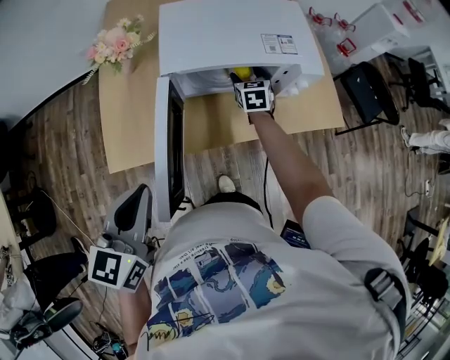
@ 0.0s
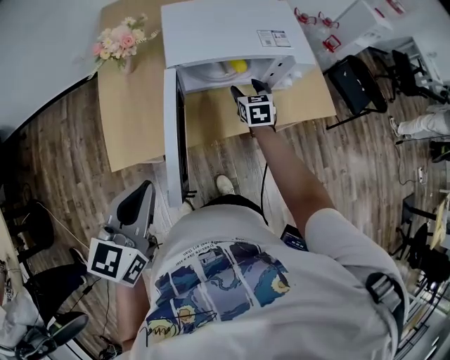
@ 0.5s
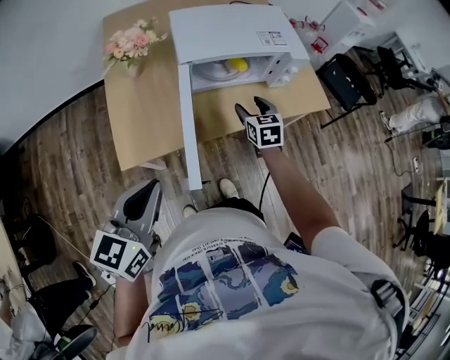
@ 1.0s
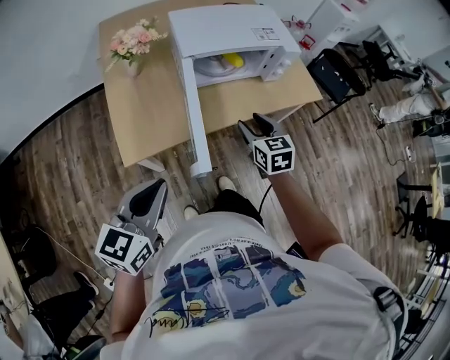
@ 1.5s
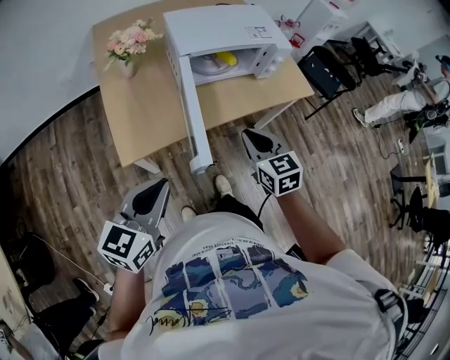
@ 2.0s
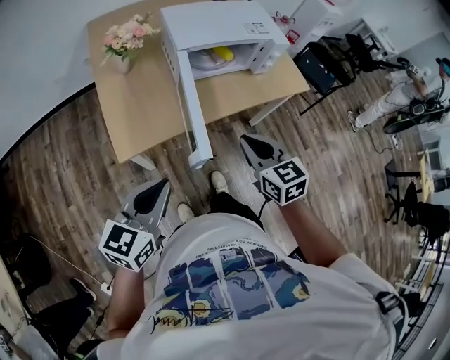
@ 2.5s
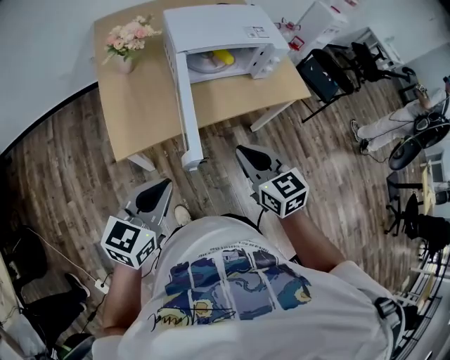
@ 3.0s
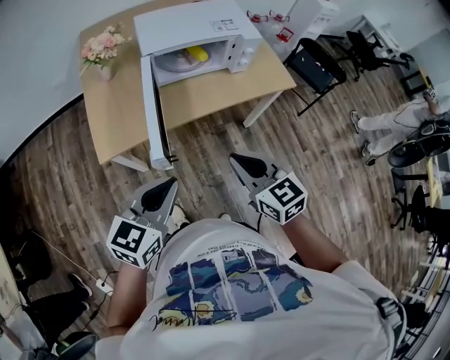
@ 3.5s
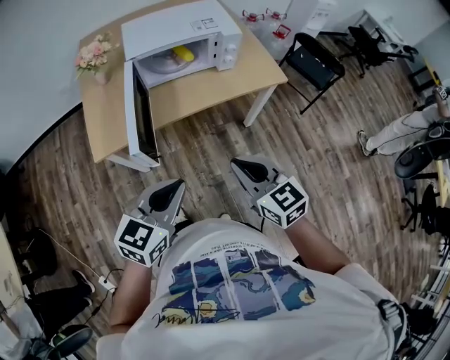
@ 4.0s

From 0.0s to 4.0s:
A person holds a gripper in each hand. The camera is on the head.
From 0.0s to 2.0s: The right gripper is displaced backward by approximately 40 cm, and closes. The left gripper heads backward and to the left, covering roughly 15 cm, and swivels roughly 20 degrees.
From 2.0s to 4.0s: The right gripper heads to the right and backward, covering roughly 20 cm; the left gripper moves to the right, some 25 cm.

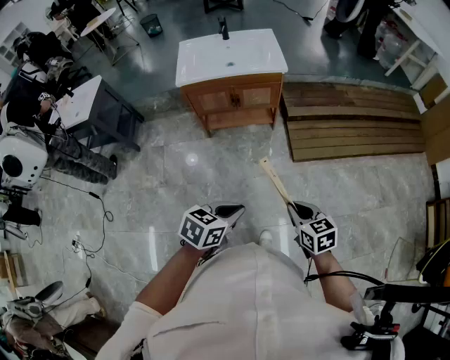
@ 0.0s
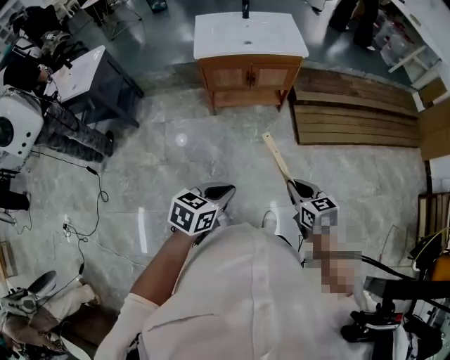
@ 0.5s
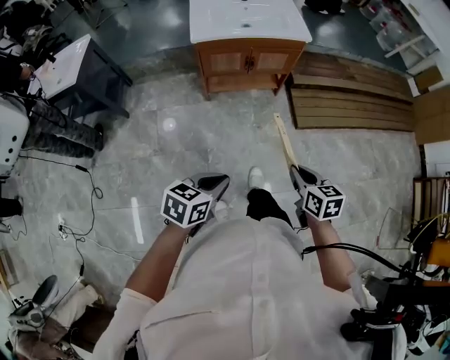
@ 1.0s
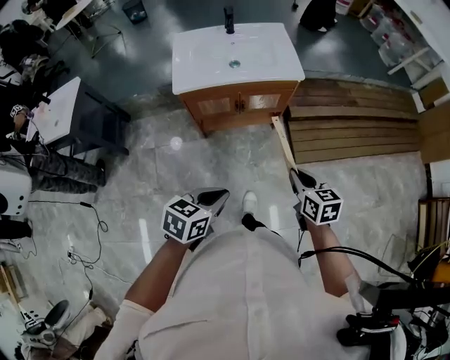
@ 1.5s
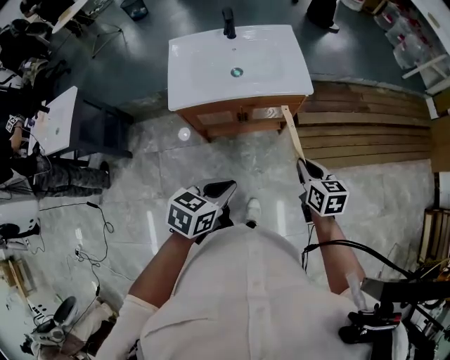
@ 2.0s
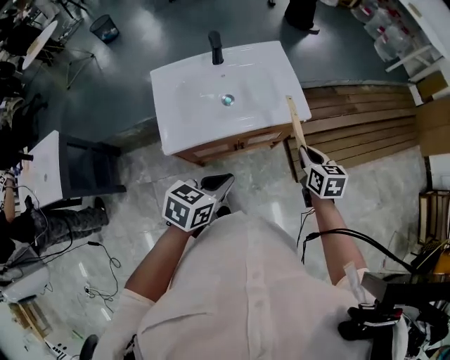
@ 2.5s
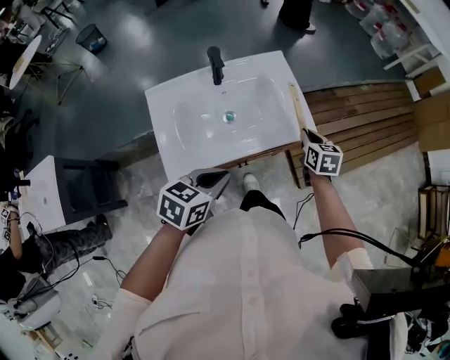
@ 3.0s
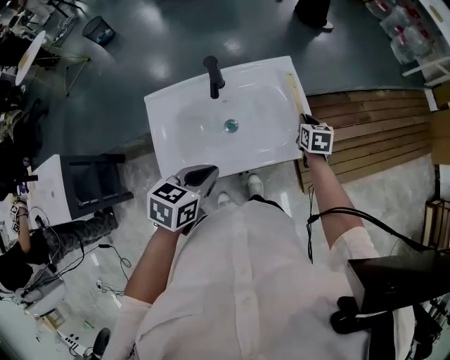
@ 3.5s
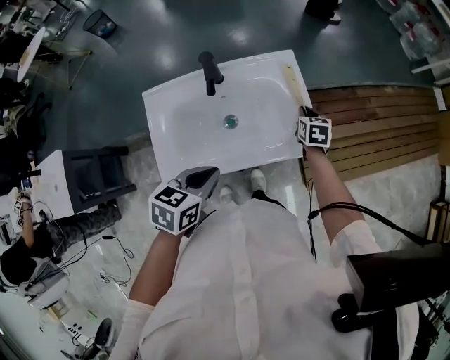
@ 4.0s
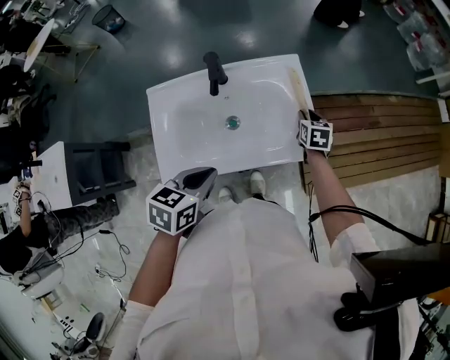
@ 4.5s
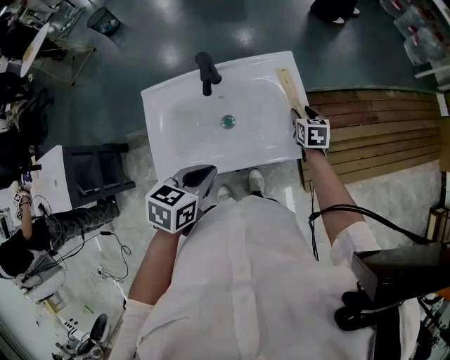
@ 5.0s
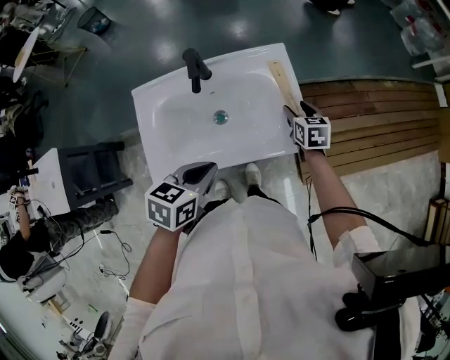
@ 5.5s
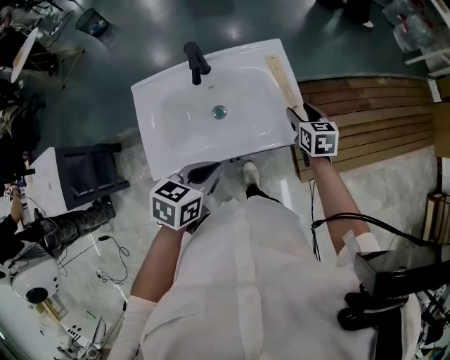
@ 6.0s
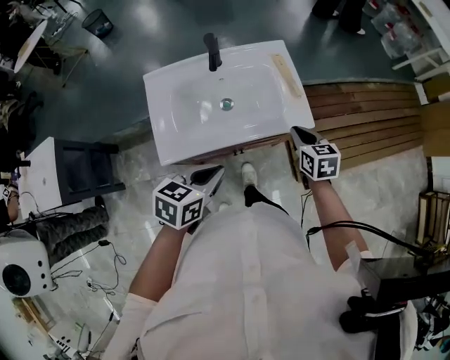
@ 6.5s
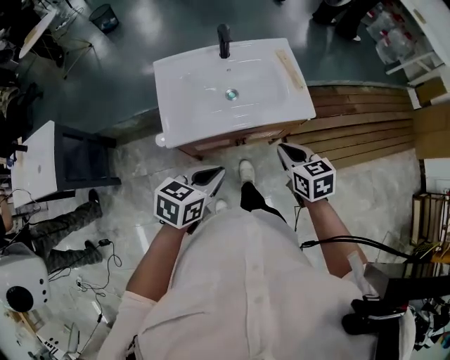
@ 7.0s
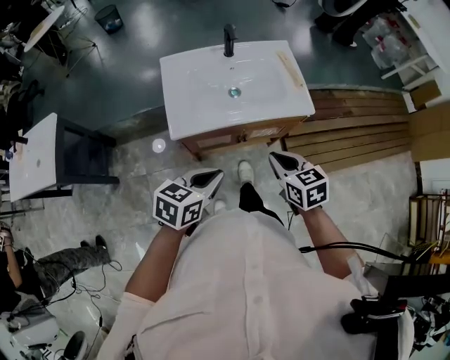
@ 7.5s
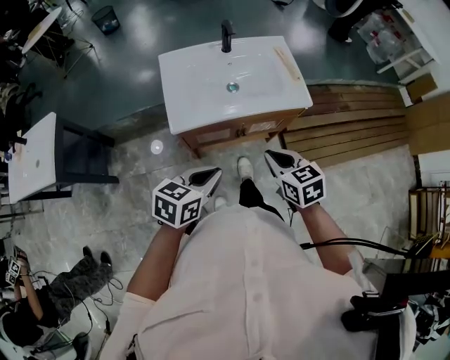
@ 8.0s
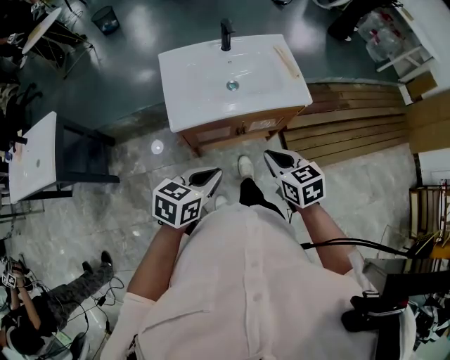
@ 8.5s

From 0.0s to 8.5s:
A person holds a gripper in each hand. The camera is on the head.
From 0.0s to 2.0s: The left gripper heads forward and to the left, covering some 35 cm, while the right gripper heads forward, covering about 40 cm.
From 2.0s to 4.0s: The left gripper travels forward and to the left by roughly 35 cm, while the right gripper heads forward, covering some 40 cm.
From 4.0s to 6.5s: The right gripper travels backward and upward by about 25 cm, and opens, then closes once more. The left gripper is displaced backward by about 10 cm.
From 6.5s to 8.5s: Both grippers travel together backward, some 20 cm.

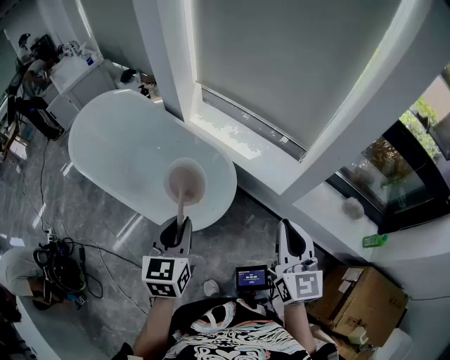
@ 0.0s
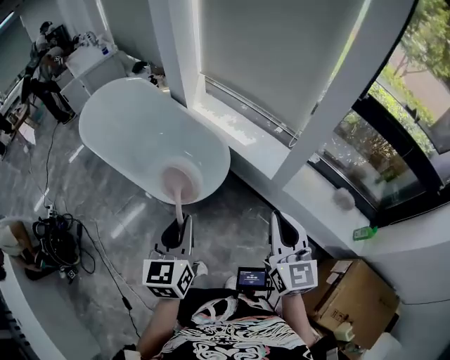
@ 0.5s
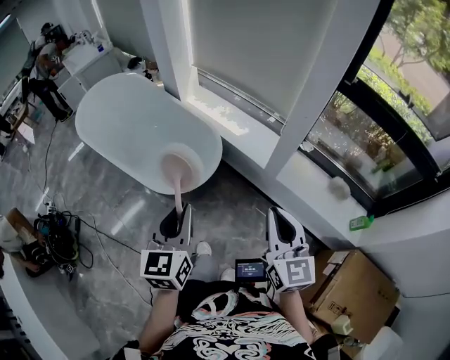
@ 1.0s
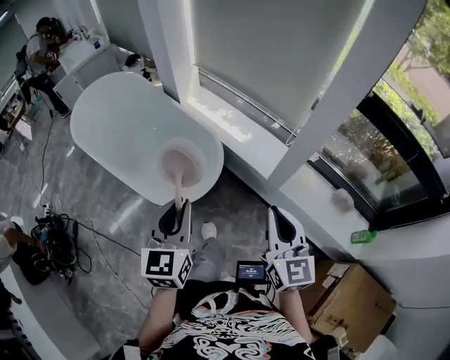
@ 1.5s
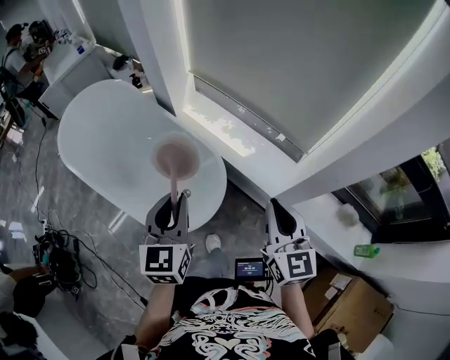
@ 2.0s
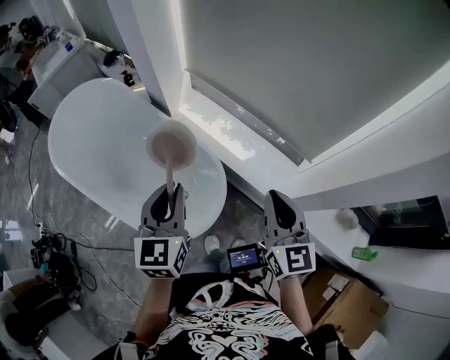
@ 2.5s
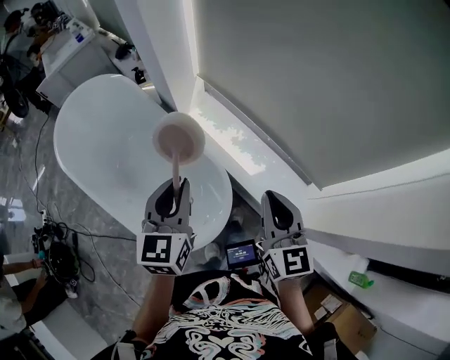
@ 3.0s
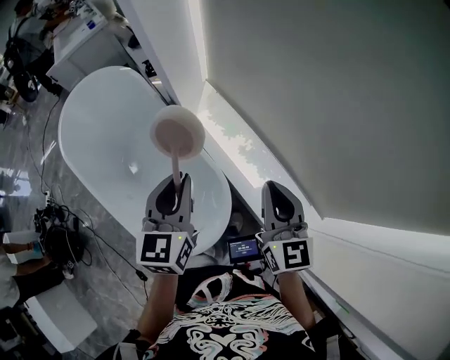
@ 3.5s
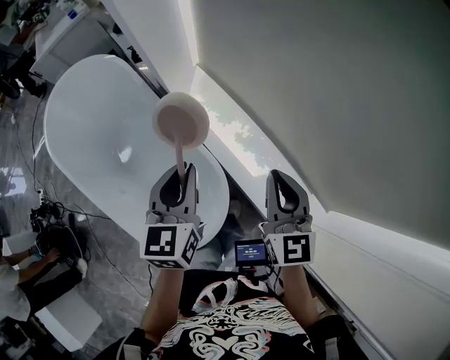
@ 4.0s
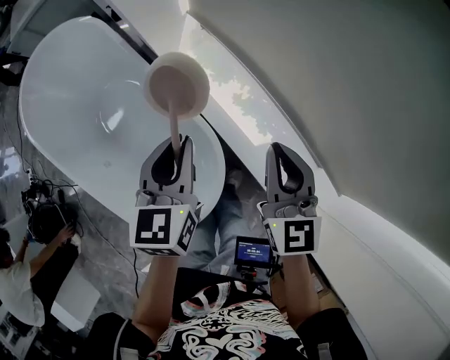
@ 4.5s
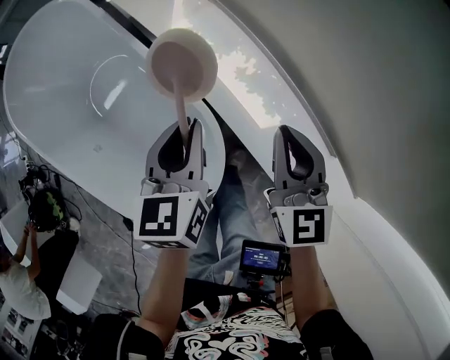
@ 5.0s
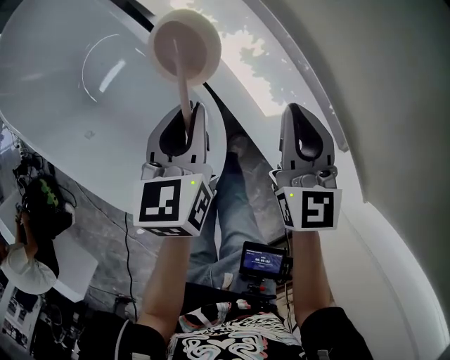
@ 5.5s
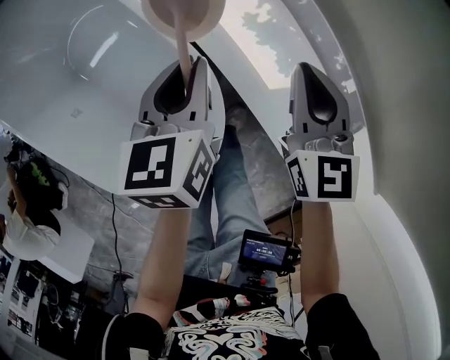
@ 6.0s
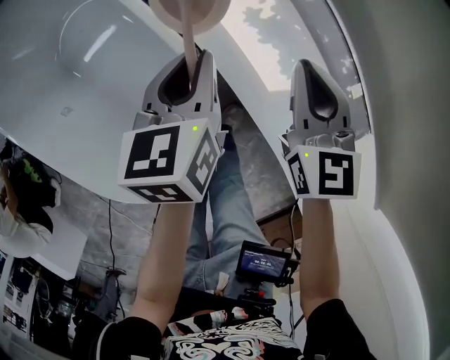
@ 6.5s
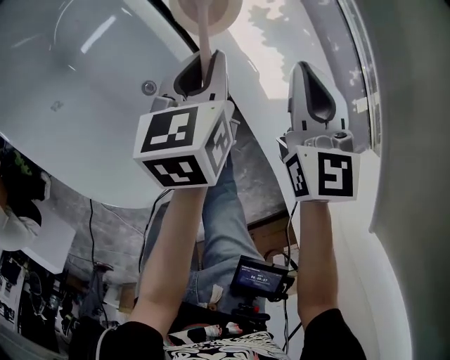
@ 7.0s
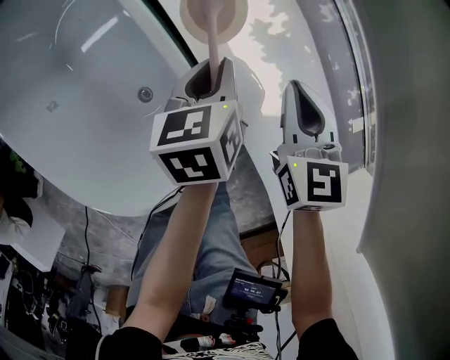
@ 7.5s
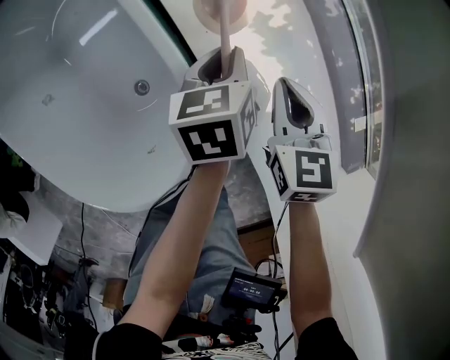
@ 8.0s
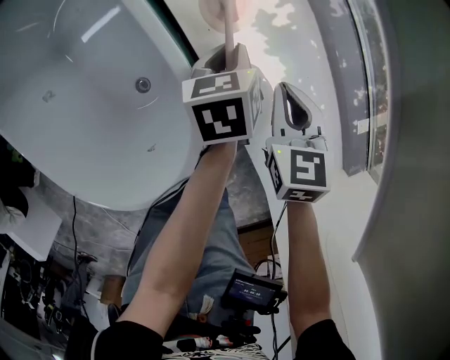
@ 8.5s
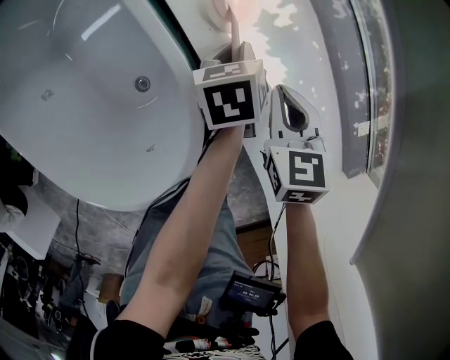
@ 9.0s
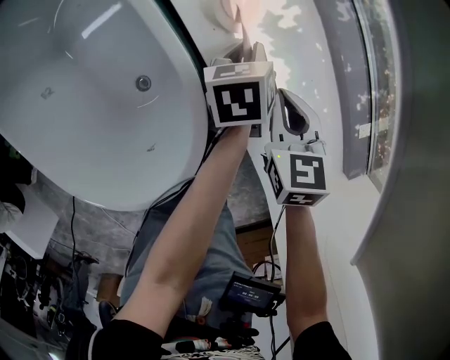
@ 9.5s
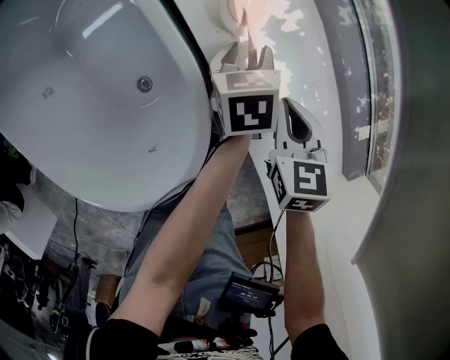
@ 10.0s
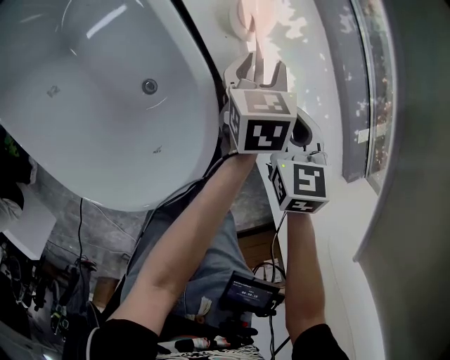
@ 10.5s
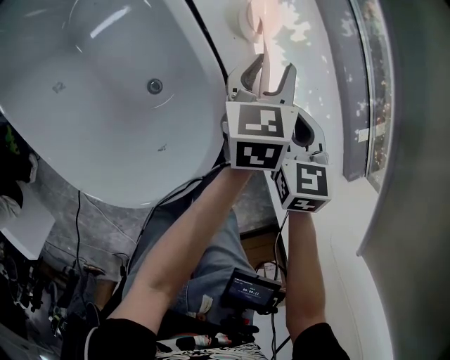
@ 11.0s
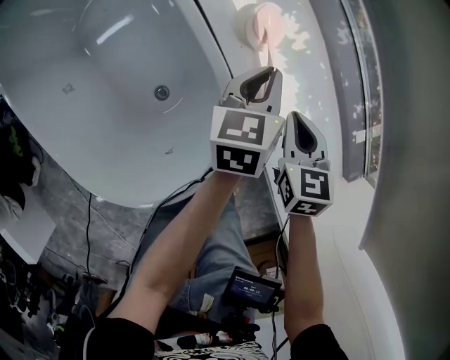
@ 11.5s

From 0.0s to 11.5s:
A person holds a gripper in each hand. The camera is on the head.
From 0.0s to 2.0s: The right gripper moves forward, some 15 cm, while the left gripper shifts approximately 15 cm forward and to the right.
From 2.0s to 4.0s: Both grippers move forward, some 40 cm.
From 4.0s to 6.0s: Both grippers travel together downward, some 35 cm.
From 6.0s to 7.5s: Both grippers move downward, roughly 15 cm.
From 7.5s to 9.5s: The two grippers go roughly 10 cm downward.
From 9.5s to 11.5s: The left gripper travels upward by some 15 cm, swivels approximately 20 degrees, and opens and closes again. Meanwhile the right gripper travels upward by some 5 cm.

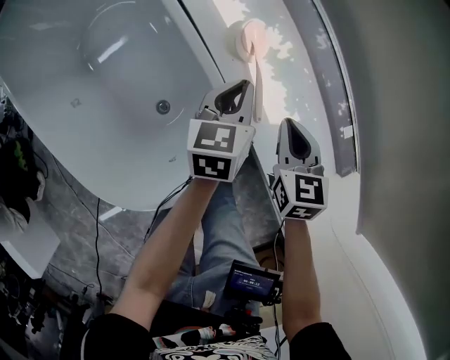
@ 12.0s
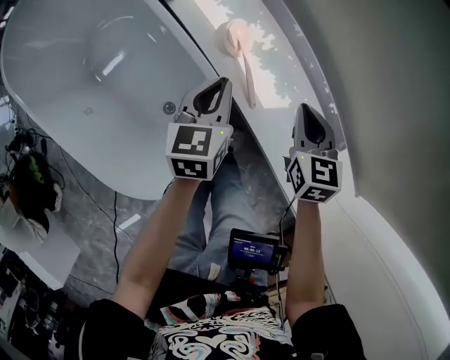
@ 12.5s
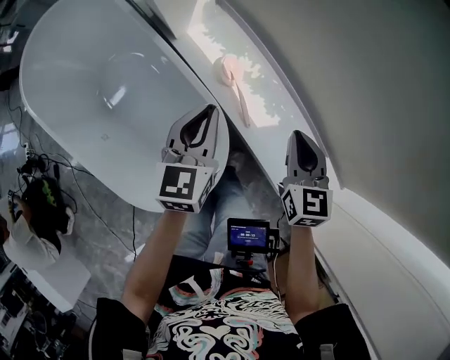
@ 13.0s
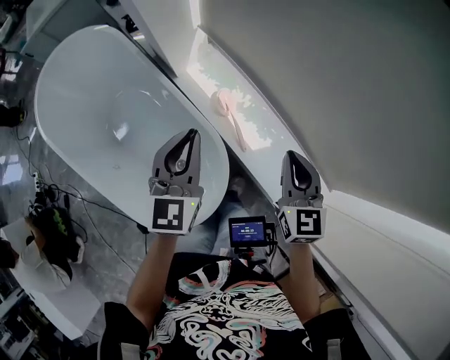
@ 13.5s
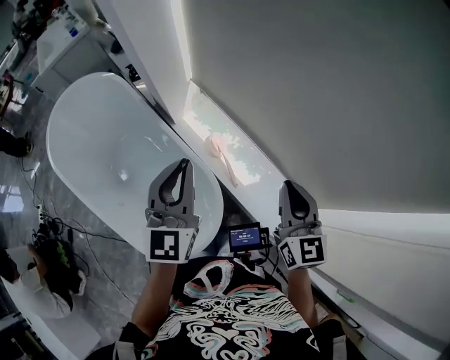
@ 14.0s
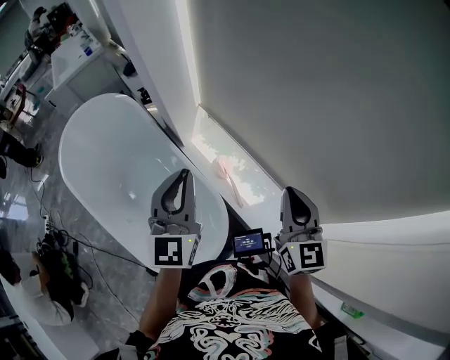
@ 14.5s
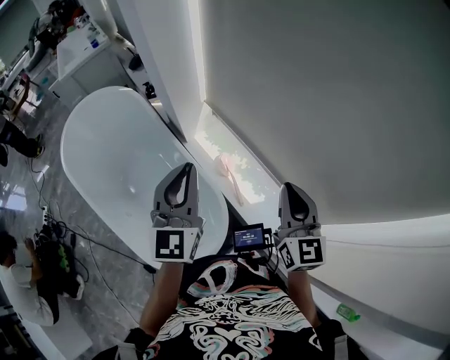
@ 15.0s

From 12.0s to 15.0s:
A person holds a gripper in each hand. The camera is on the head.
From 12.0s to 13.5s: Both grippers travel together upward, about 35 cm. The right gripper rotates approximately 20 degrees, while the left gripper turns by roughly 30 degrees.
From 13.5s to 15.0s: Both grippers move upward, roughly 15 cm.
